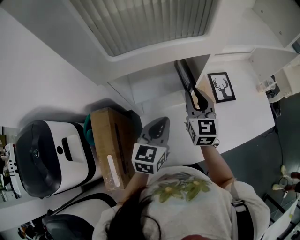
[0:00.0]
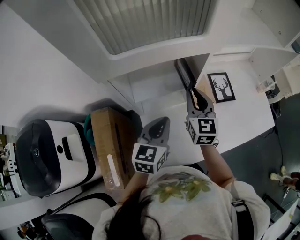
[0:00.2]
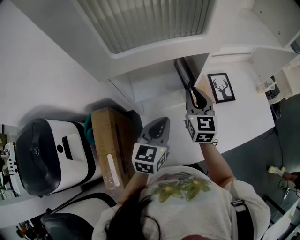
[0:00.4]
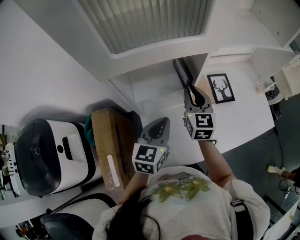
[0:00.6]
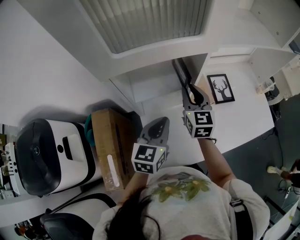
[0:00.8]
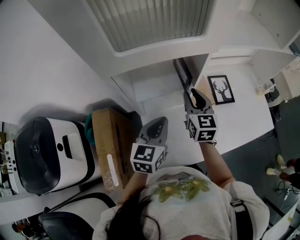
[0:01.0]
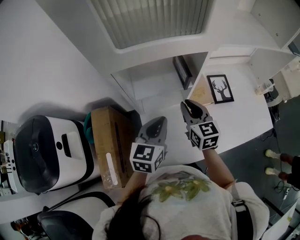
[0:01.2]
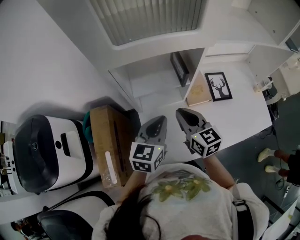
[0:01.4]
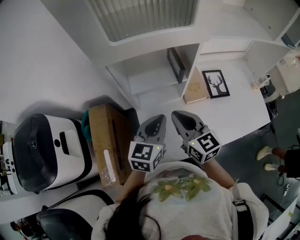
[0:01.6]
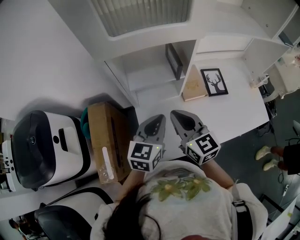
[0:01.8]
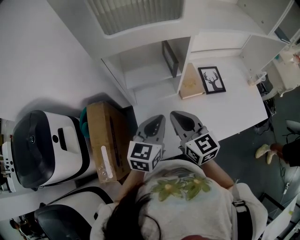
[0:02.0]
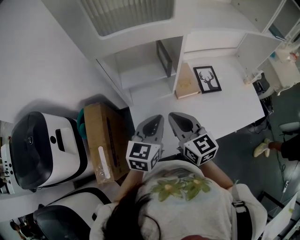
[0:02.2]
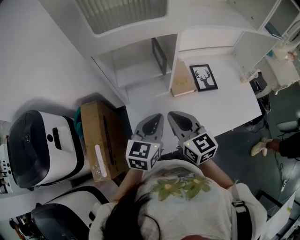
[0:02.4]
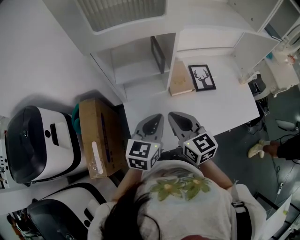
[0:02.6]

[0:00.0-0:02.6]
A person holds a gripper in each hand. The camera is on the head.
0:00.0 to 0:01.2: The right gripper moves approximately 5 cm.
0:01.2 to 0:02.6: The right gripper travels backward by approximately 15 cm; the left gripper heads backward and to the right, covering approximately 10 cm.

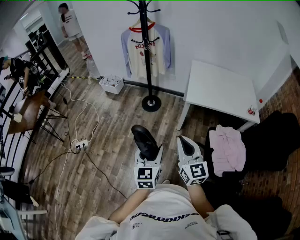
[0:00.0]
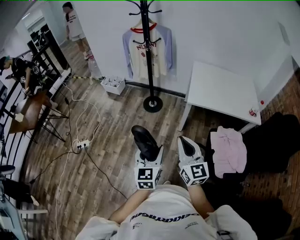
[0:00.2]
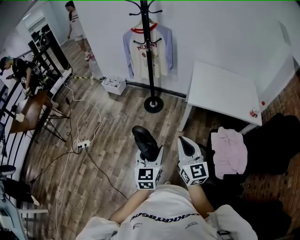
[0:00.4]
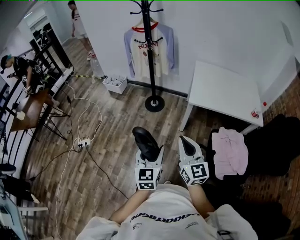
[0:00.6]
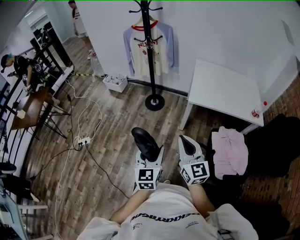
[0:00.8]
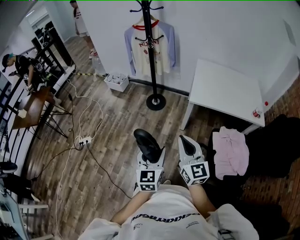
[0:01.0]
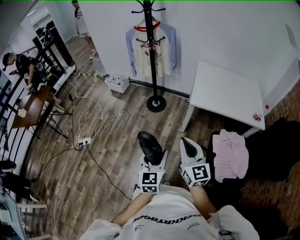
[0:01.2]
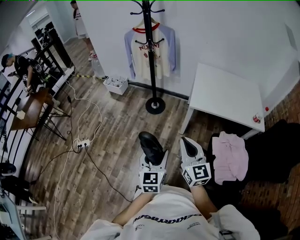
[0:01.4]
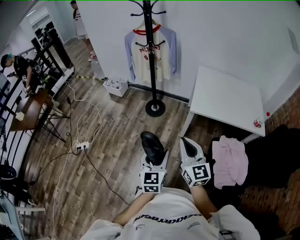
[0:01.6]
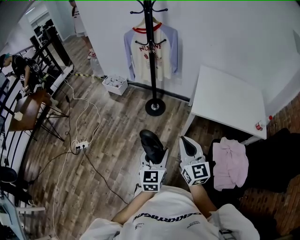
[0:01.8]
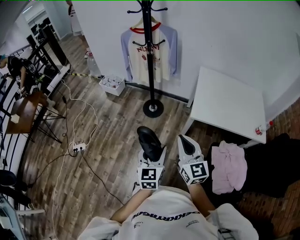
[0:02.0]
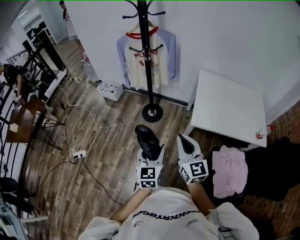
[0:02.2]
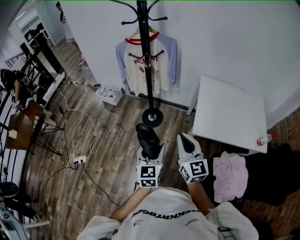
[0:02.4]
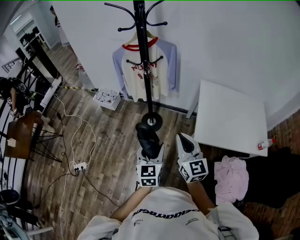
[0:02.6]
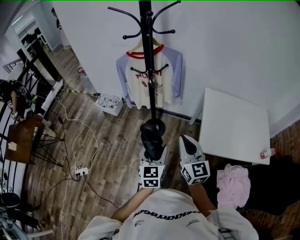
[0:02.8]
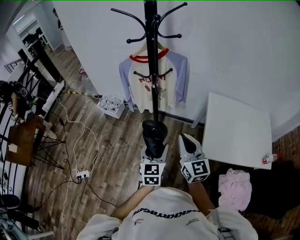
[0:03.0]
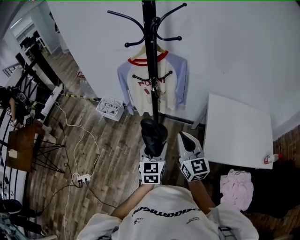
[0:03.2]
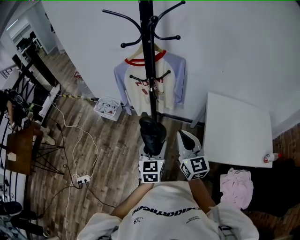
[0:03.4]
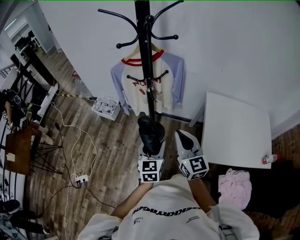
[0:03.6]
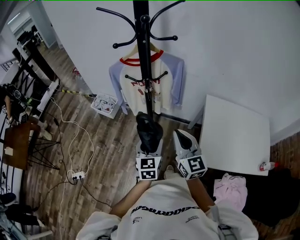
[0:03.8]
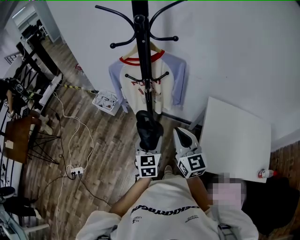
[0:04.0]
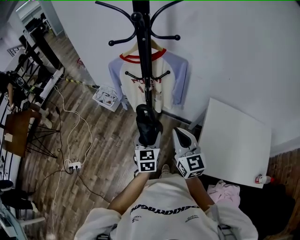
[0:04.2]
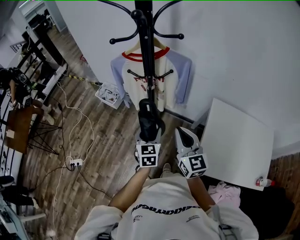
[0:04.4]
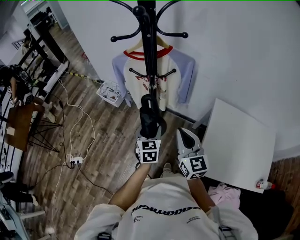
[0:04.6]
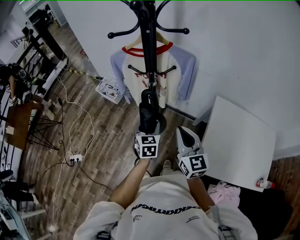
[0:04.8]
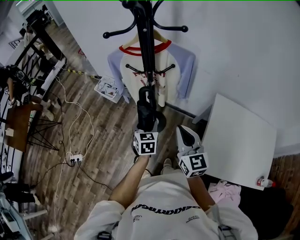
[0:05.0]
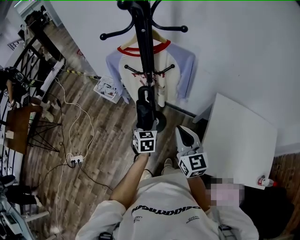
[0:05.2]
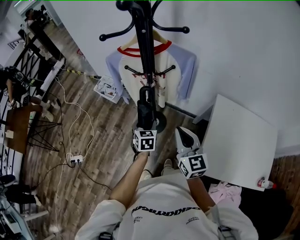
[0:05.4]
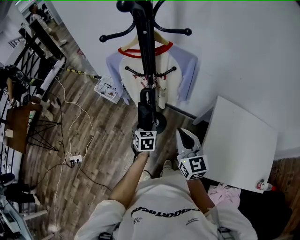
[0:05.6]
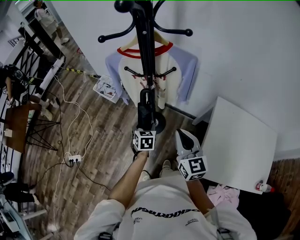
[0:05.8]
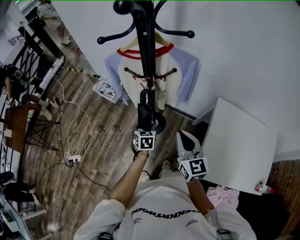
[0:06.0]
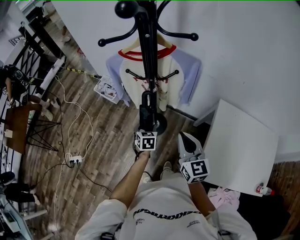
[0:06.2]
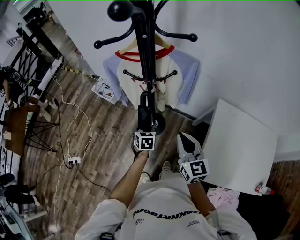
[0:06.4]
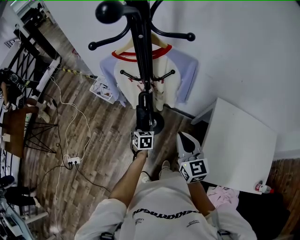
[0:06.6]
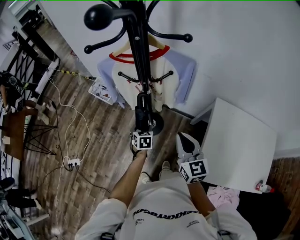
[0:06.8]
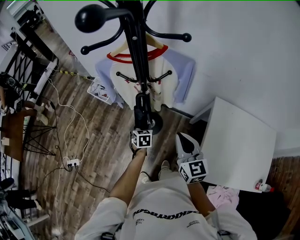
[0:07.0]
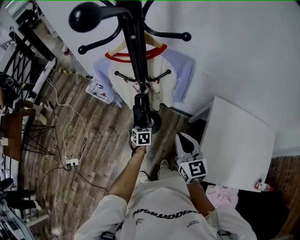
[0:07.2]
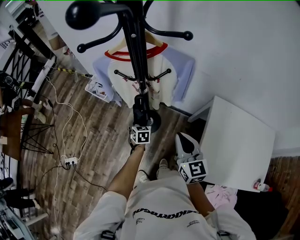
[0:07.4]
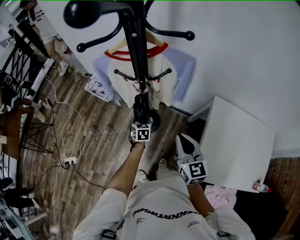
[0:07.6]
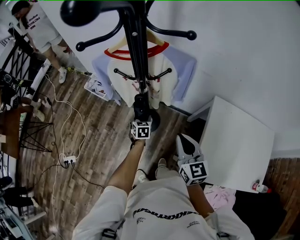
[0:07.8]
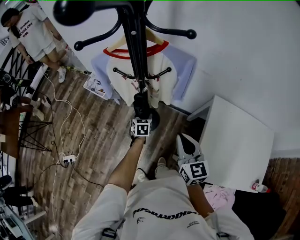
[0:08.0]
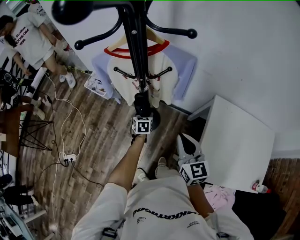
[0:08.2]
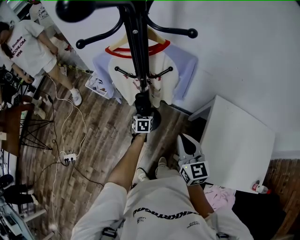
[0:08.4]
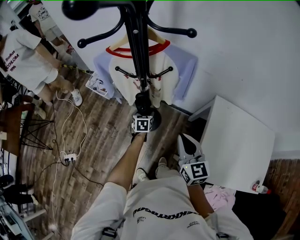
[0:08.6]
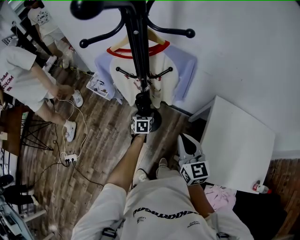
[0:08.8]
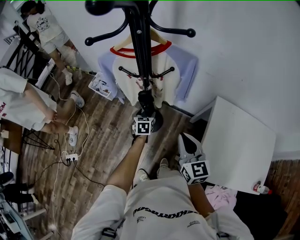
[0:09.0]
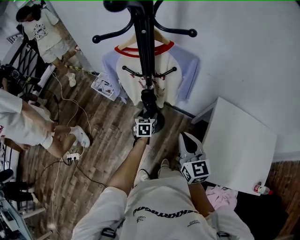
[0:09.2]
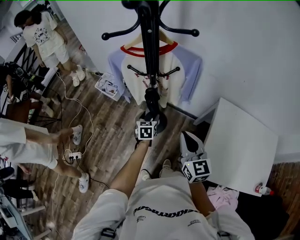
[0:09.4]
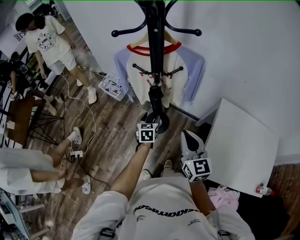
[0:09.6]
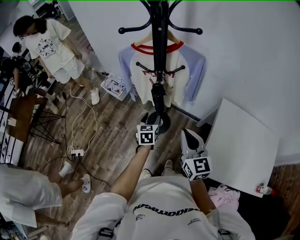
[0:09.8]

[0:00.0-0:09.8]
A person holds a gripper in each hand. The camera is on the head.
0:00.0 to 0:01.4: The left gripper shifts by roughly 5 cm; the right gripper moves approximately 5 cm.
0:01.4 to 0:02.8: The two grippers travel together, forward, about 40 cm.
0:02.8 to 0:04.2: Both grippers travel together forward, some 20 cm.
0:04.2 to 0:05.6: The left gripper travels downward and forward by approximately 15 cm, while the right gripper is displaced downward by approximately 5 cm.
0:05.6 to 0:07.0: The left gripper travels downward and forward by approximately 10 cm.
0:07.0 to 0:08.4: The left gripper is displaced forward by some 5 cm.
0:08.4 to 0:09.8: The left gripper moves upward and backward, about 15 cm; the right gripper moves backward and upward, approximately 10 cm.

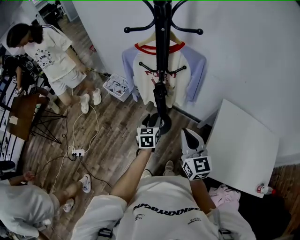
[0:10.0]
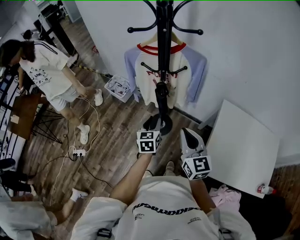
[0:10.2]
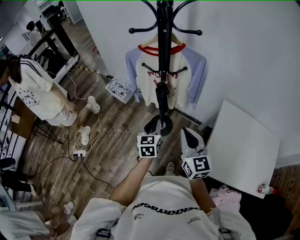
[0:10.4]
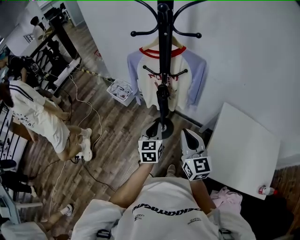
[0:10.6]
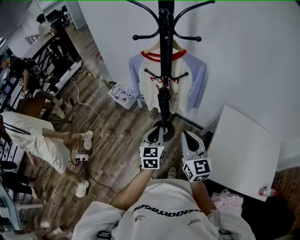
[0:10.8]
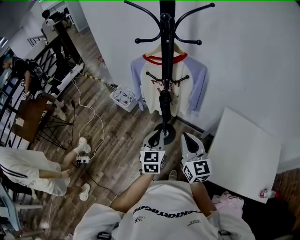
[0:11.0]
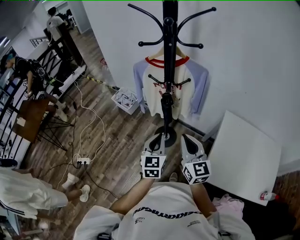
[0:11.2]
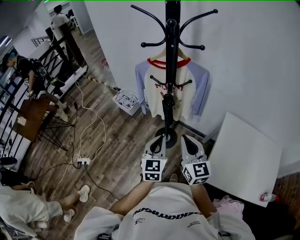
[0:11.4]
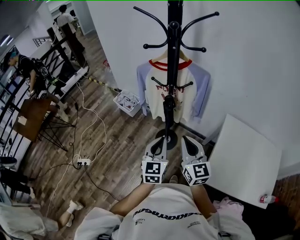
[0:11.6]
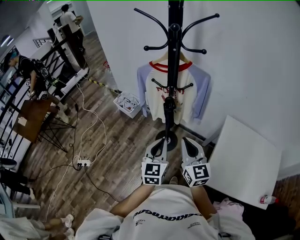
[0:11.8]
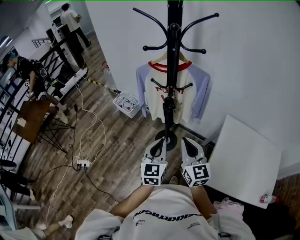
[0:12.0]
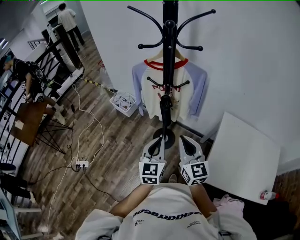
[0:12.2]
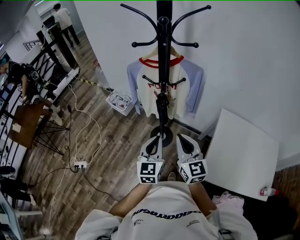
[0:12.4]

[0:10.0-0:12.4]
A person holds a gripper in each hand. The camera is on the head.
0:10.0 to 0:11.2: The left gripper travels upward and backward by some 15 cm, and closes its fingers.
0:11.2 to 0:12.4: The grippers move only a little.

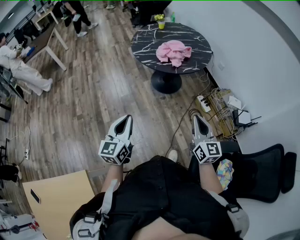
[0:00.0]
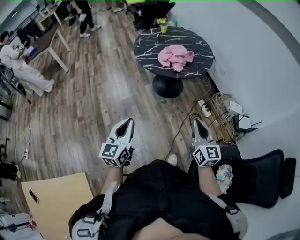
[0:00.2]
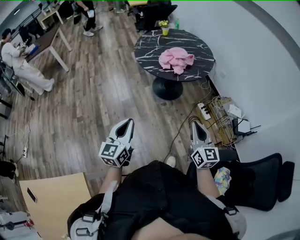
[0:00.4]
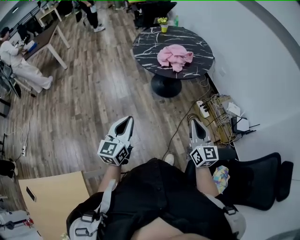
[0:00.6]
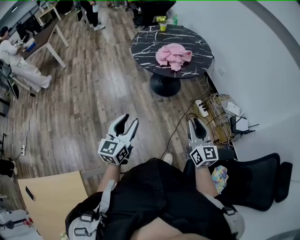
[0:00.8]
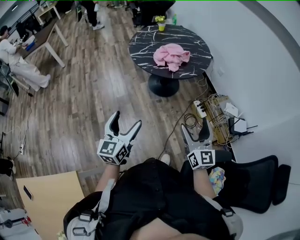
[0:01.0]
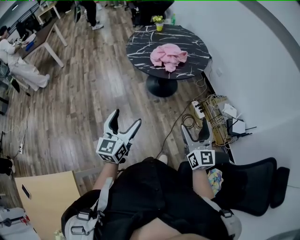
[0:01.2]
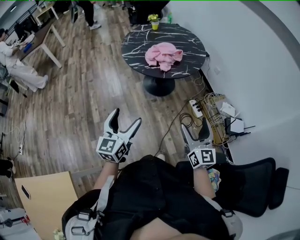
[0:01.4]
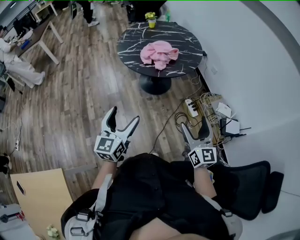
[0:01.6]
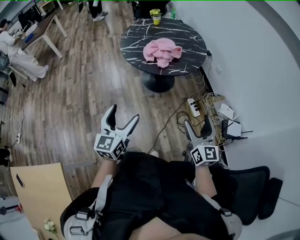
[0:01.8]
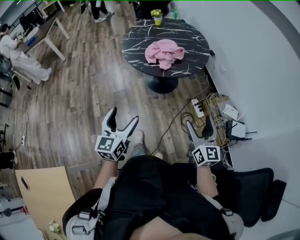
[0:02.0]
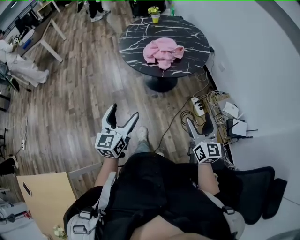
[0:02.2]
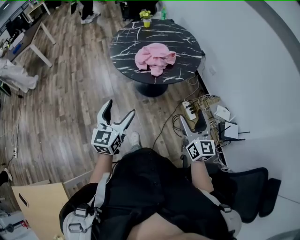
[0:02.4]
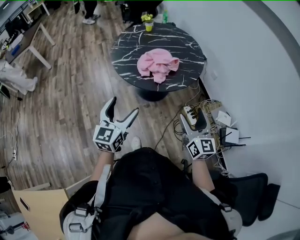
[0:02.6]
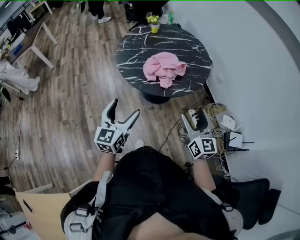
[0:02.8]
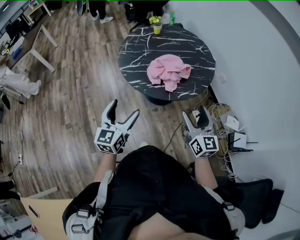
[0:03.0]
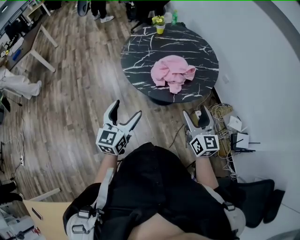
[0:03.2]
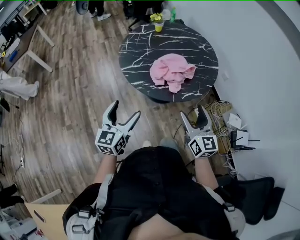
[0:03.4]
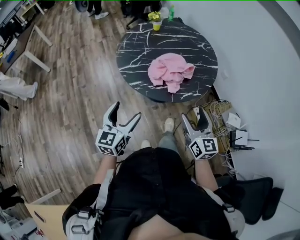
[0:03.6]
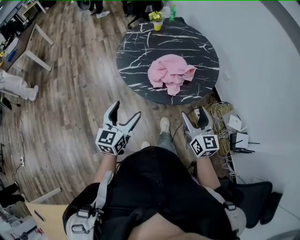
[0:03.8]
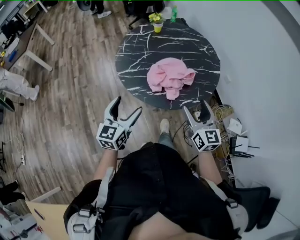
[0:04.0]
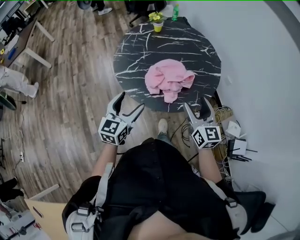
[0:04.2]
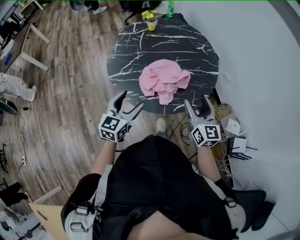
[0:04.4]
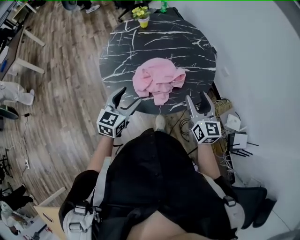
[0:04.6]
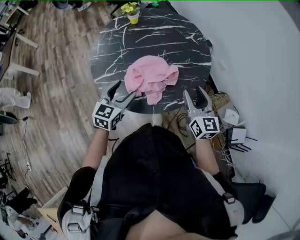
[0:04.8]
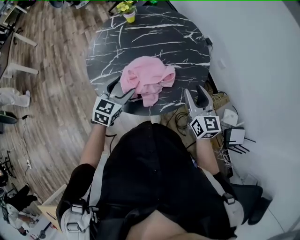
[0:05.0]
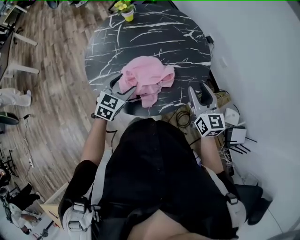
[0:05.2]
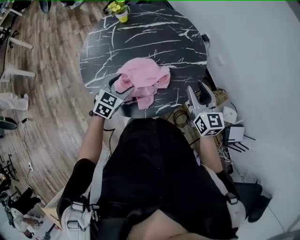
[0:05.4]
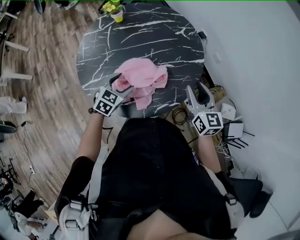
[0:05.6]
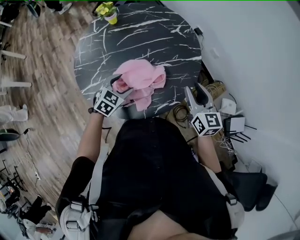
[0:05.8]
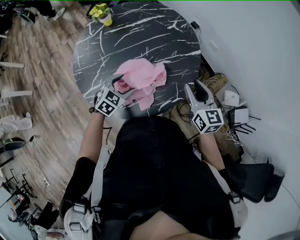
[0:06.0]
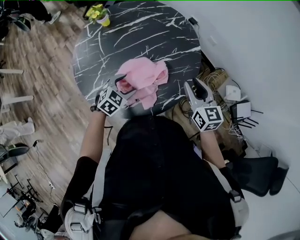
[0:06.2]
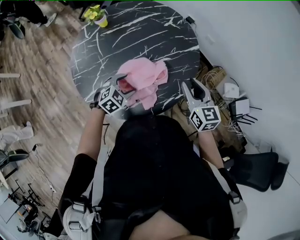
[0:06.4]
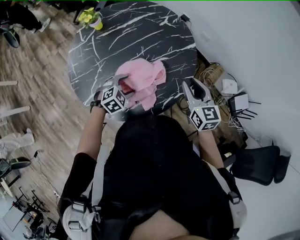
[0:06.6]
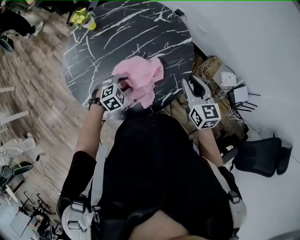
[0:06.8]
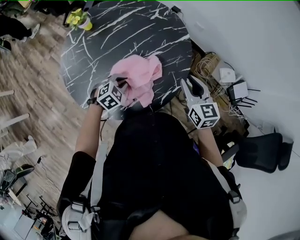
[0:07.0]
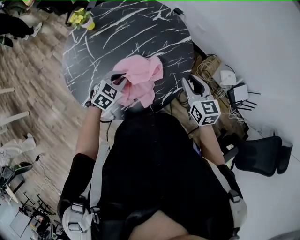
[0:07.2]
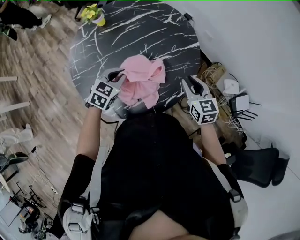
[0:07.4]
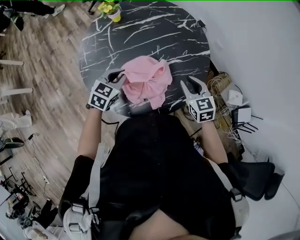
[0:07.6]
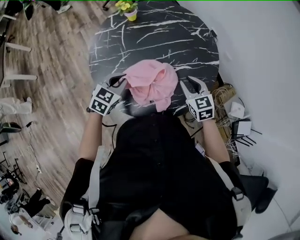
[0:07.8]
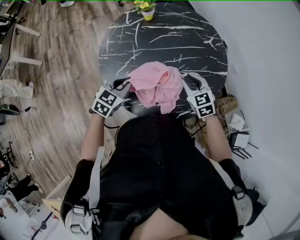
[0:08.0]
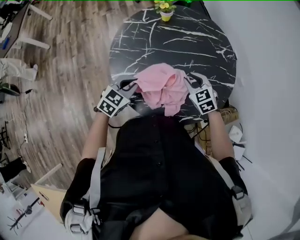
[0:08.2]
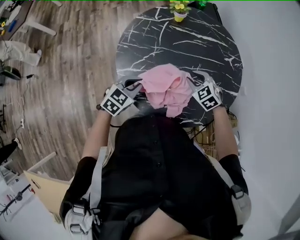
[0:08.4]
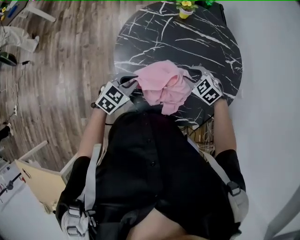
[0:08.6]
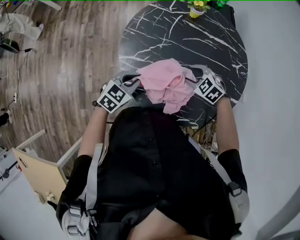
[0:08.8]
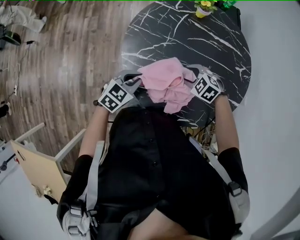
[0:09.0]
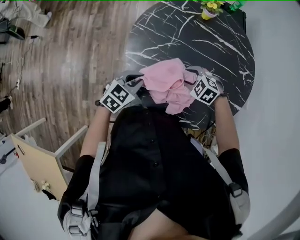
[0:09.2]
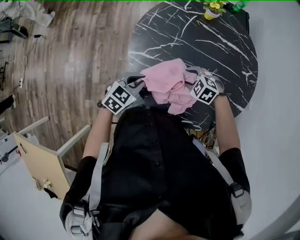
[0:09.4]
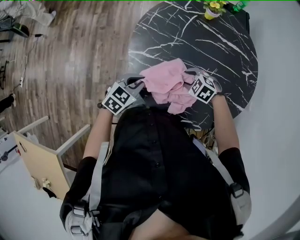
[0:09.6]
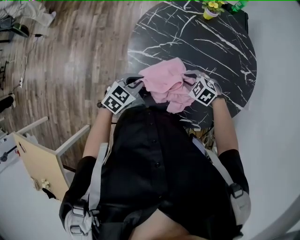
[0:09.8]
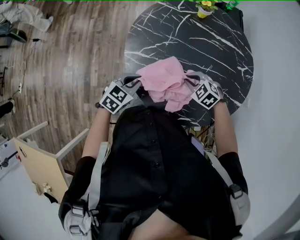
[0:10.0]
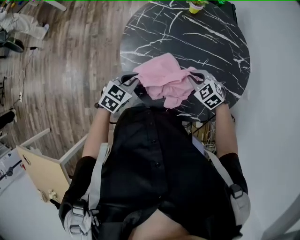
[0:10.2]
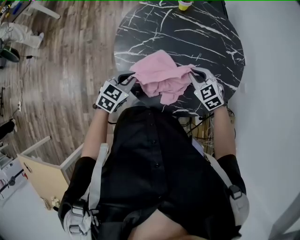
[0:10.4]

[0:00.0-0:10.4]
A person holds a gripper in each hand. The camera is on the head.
0:00.0 to 0:01.4: The left gripper is displaced to the right and forward by approximately 15 cm, and opens its fingers, while the right gripper travels to the right by approximately 10 cm, and opens up.
0:01.4 to 0:03.0: Both grippers travel together forward, about 25 cm.
0:03.0 to 0:04.4: Both grippers move forward, approximately 20 cm.
0:04.4 to 0:06.0: The left gripper heads forward, downward and to the right, covering approximately 25 cm, and turns by about 50 degrees, while the right gripper is displaced forward, to the right and downward by roughly 15 cm, and closes up.
0:06.0 to 0:07.4: The right gripper ends up approximately 5 cm from where it was, while the left gripper moves roughly 5 cm, and closes up.
0:07.4 to 0:09.0: The right gripper changes place by some 30 cm, and turns by approximately 100 degrees; the left gripper changes place by roughly 20 cm, and changes its angle by some 30 degrees.
0:09.0 to 0:10.4: The right gripper ends up approximately 10 cm from where it was, changes its angle by roughly 30 degrees, and closes up.
